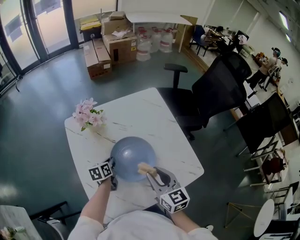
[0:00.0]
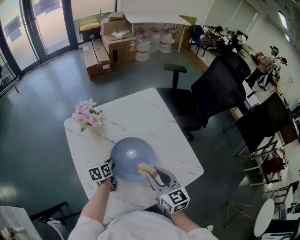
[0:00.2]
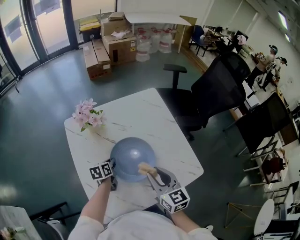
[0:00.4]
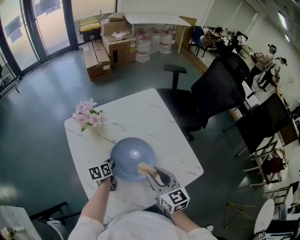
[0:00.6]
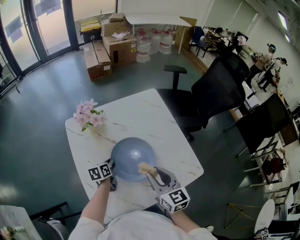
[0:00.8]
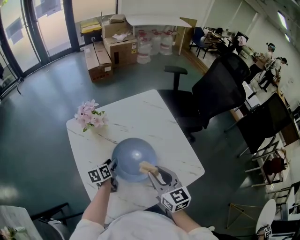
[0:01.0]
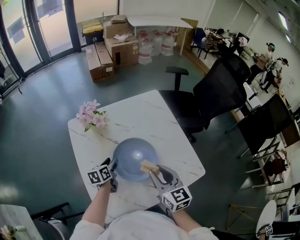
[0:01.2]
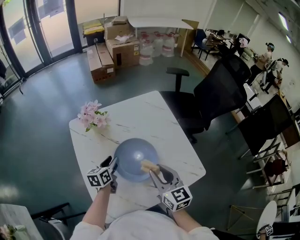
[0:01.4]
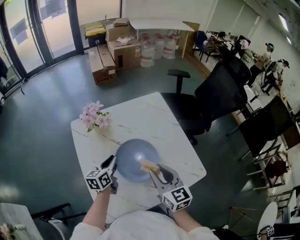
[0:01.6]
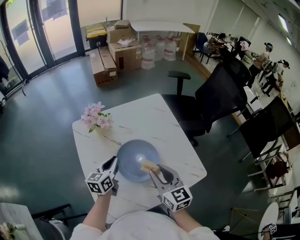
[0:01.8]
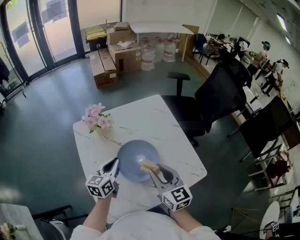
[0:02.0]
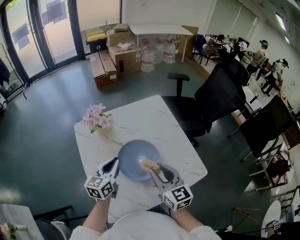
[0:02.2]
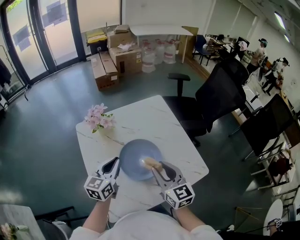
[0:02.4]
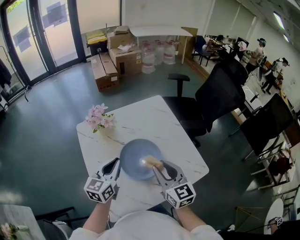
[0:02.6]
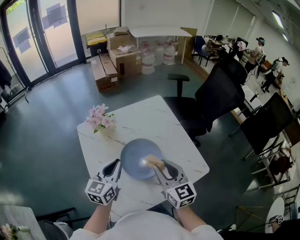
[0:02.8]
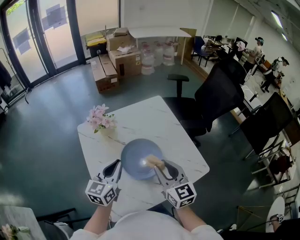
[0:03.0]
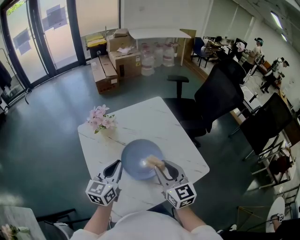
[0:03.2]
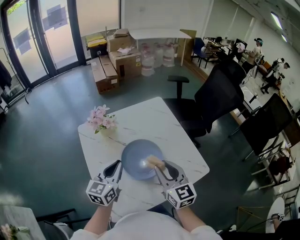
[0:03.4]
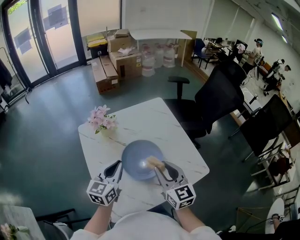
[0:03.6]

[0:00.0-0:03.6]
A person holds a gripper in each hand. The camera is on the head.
0:00.0 to 0:01.8: The left gripper goes roughly 15 cm upward, turns by about 30 degrees, and opens and closes again.
0:01.8 to 0:03.6: The left gripper is displaced upward and backward by about 10 cm.

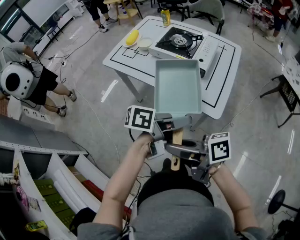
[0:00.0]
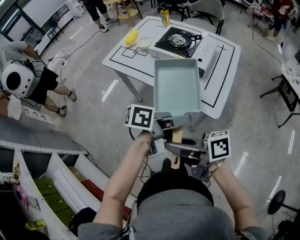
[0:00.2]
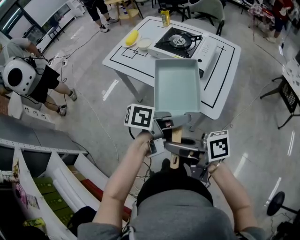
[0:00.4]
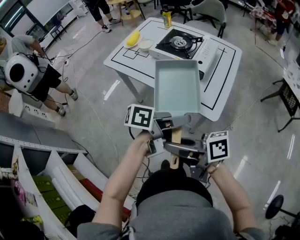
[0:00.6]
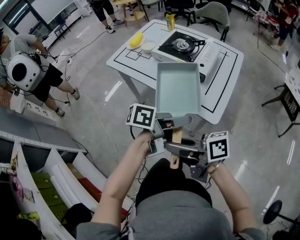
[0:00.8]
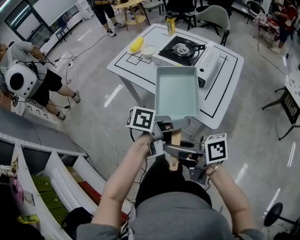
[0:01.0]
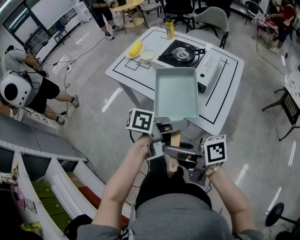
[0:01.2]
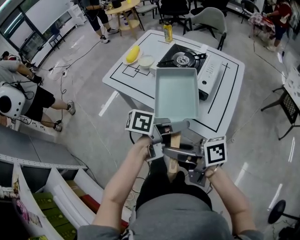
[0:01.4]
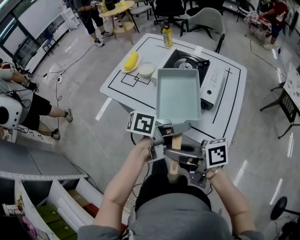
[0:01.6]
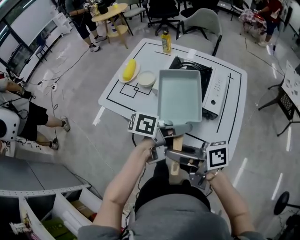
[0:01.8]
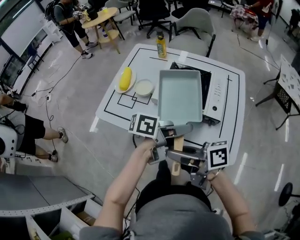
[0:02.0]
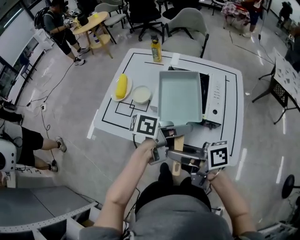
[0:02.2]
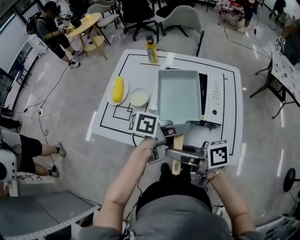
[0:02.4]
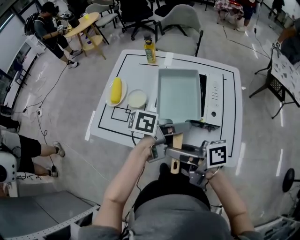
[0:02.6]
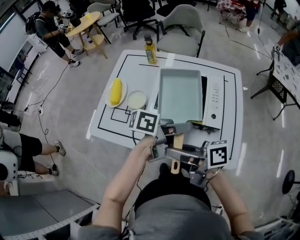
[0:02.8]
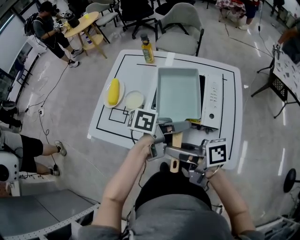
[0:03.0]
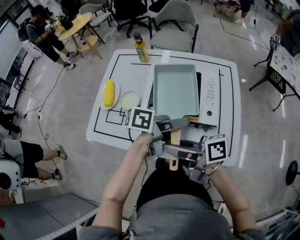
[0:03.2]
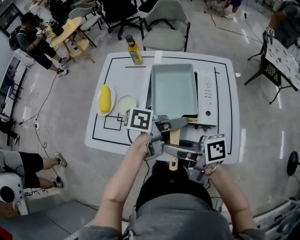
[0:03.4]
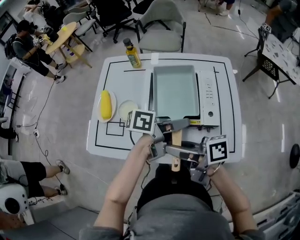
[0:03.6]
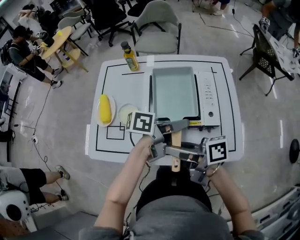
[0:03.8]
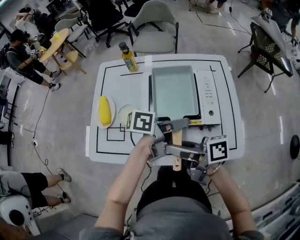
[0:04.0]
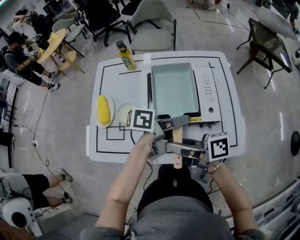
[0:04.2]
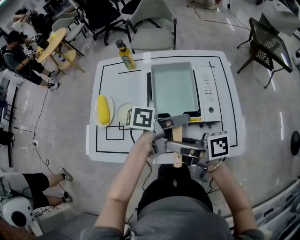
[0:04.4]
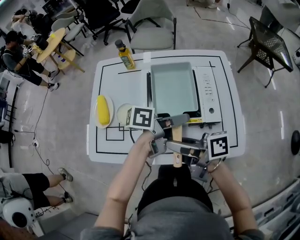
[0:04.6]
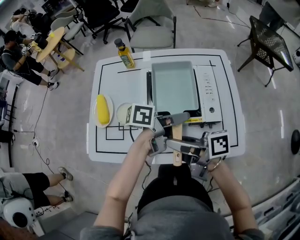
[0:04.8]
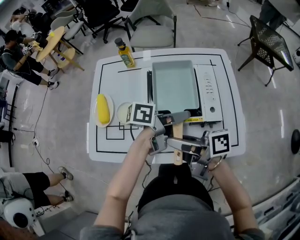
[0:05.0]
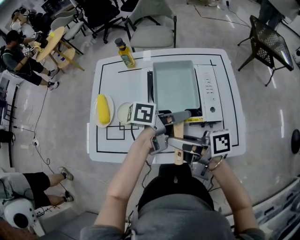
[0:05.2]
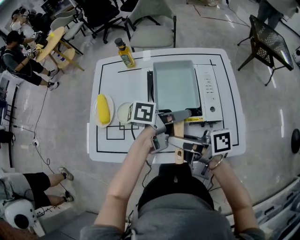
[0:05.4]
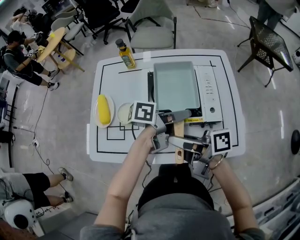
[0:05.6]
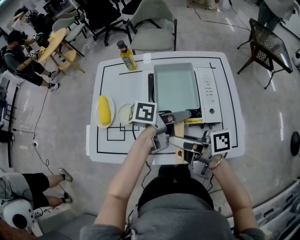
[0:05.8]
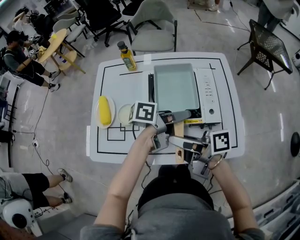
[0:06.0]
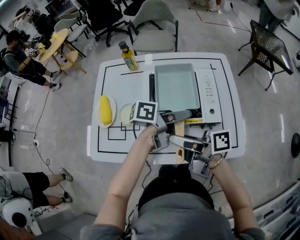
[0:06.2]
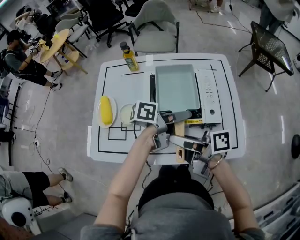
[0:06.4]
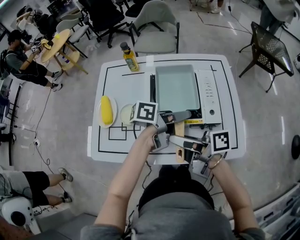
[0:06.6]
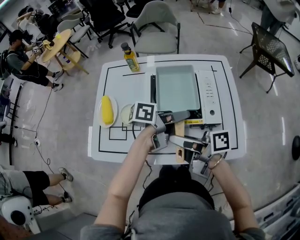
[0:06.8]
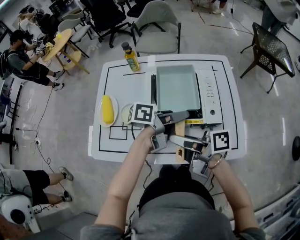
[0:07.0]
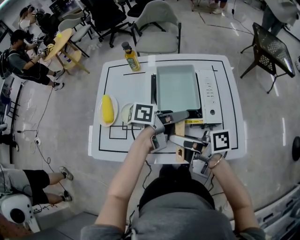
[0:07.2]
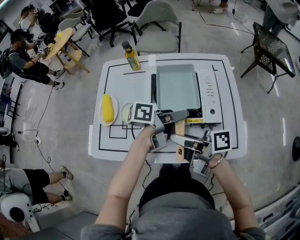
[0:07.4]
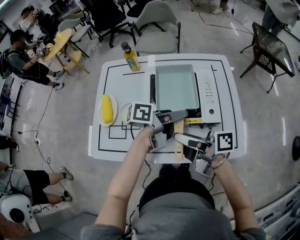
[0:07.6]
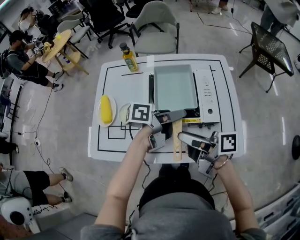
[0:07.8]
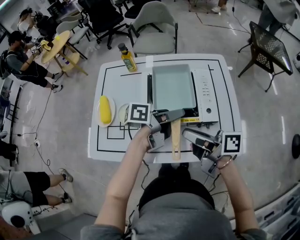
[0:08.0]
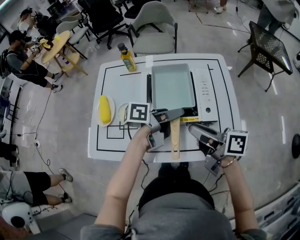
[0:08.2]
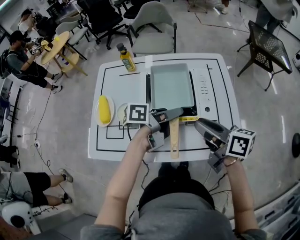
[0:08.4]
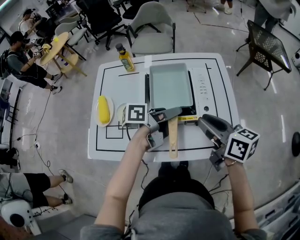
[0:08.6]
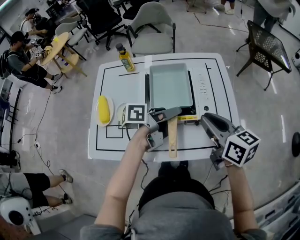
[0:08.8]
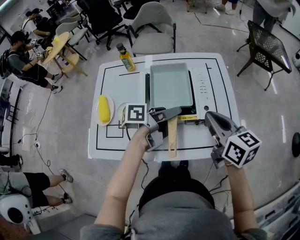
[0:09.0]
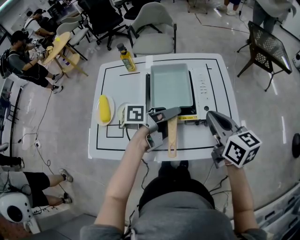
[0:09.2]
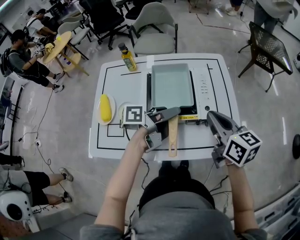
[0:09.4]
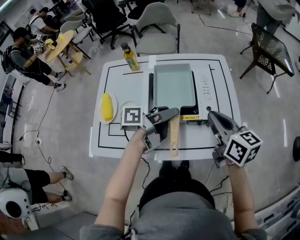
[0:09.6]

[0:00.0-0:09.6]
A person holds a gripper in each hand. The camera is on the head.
0:00.0 to 0:01.6: The right gripper changes place by roughly 15 cm. Meanwhile the left gripper moves roughly 15 cm.
0:01.6 to 0:03.2: The right gripper changes place by roughly 20 cm. The left gripper changes place by some 15 cm.
0:03.2 to 0:04.8: The right gripper ends up some 5 cm from where it was.
0:04.8 to 0:06.4: Both grippers stay about where they are.
0:06.4 to 0:08.0: The right gripper shifts by some 5 cm.
0:08.0 to 0:09.6: The right gripper travels to the right and forward by approximately 10 cm, changes its angle by some 50 degrees, and closes its fingers.

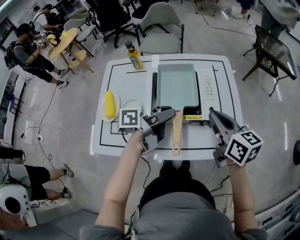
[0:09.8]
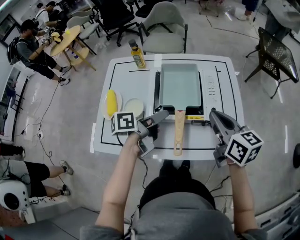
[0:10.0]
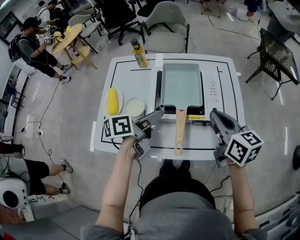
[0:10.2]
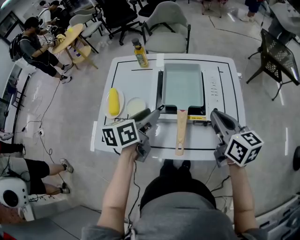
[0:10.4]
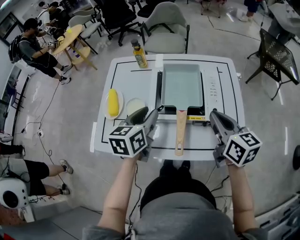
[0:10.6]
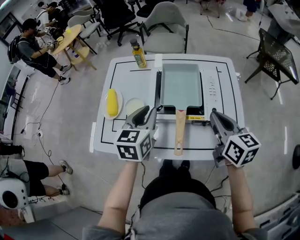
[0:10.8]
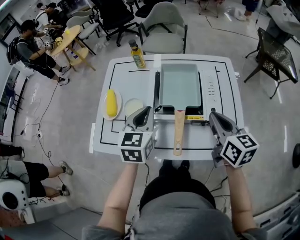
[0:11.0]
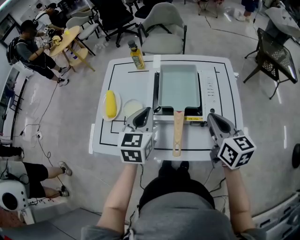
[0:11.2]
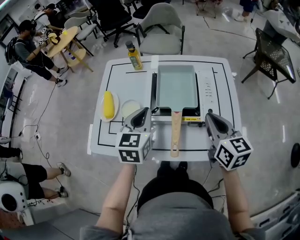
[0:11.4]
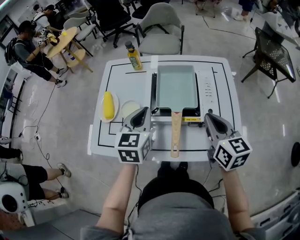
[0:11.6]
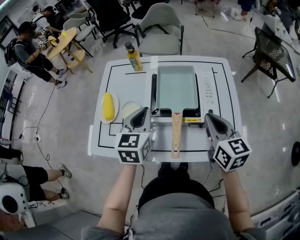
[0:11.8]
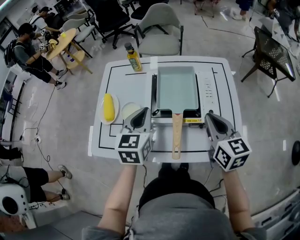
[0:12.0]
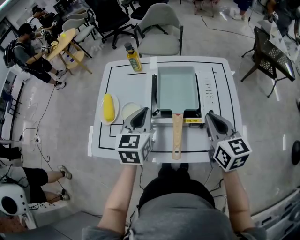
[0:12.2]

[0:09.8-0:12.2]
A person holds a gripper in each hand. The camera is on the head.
0:09.8 to 0:11.0: The left gripper travels to the left by roughly 10 cm, swivels about 80 degrees, and closes.
0:11.0 to 0:12.2: The grippers stay close to where they were, moving slightly.

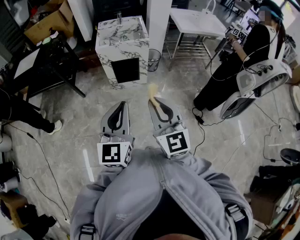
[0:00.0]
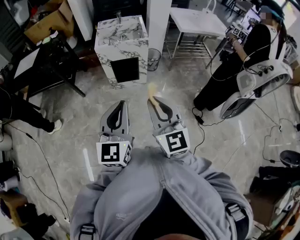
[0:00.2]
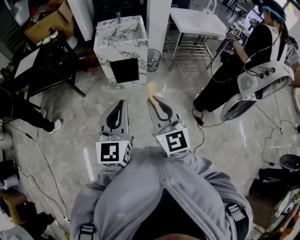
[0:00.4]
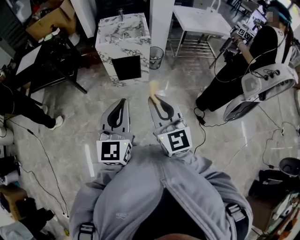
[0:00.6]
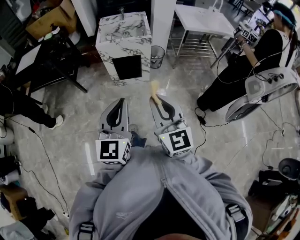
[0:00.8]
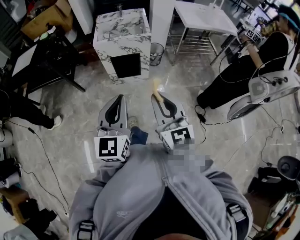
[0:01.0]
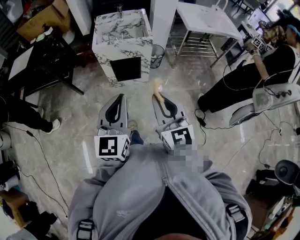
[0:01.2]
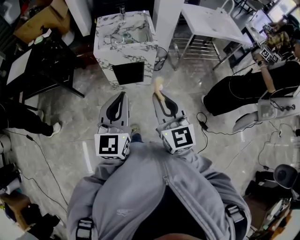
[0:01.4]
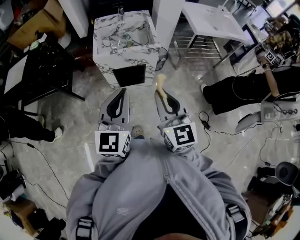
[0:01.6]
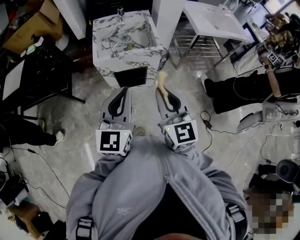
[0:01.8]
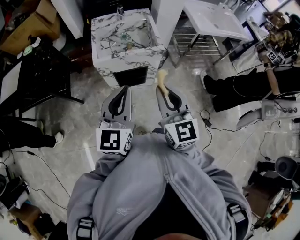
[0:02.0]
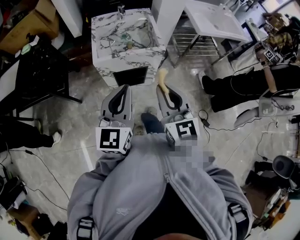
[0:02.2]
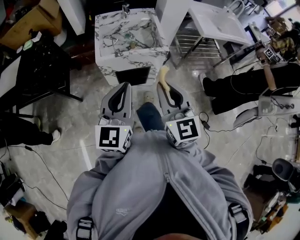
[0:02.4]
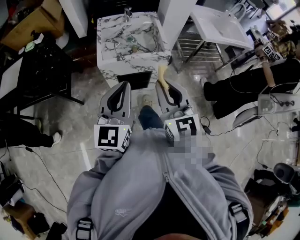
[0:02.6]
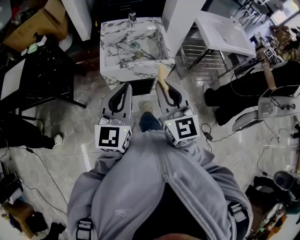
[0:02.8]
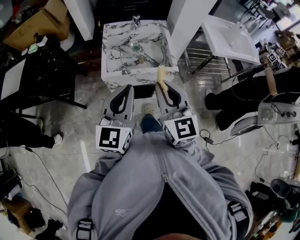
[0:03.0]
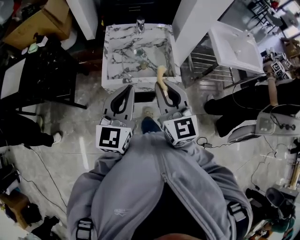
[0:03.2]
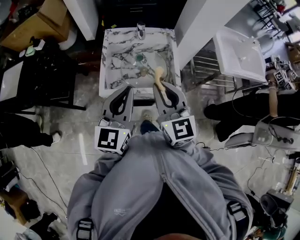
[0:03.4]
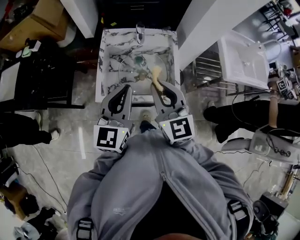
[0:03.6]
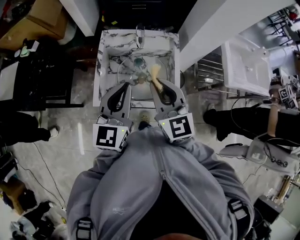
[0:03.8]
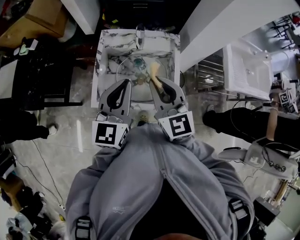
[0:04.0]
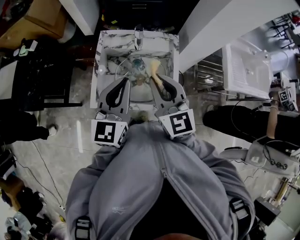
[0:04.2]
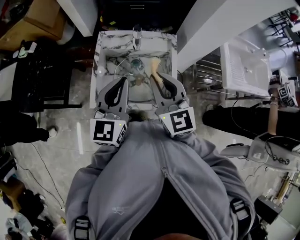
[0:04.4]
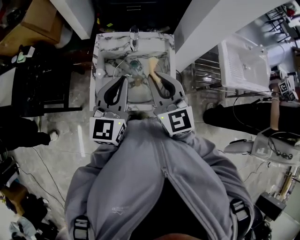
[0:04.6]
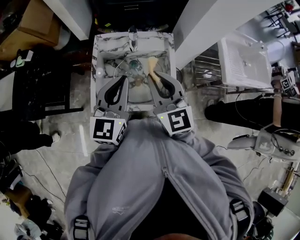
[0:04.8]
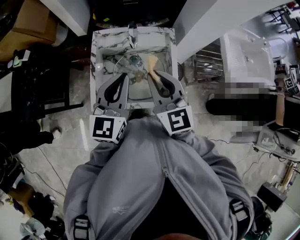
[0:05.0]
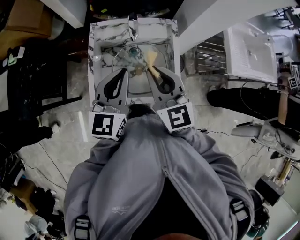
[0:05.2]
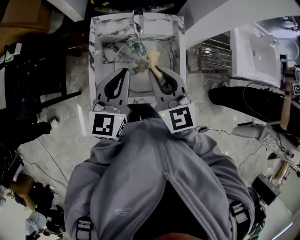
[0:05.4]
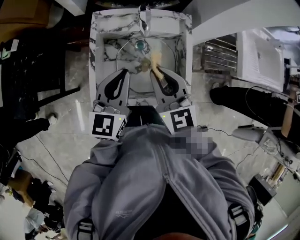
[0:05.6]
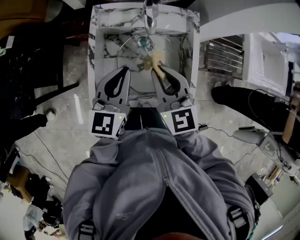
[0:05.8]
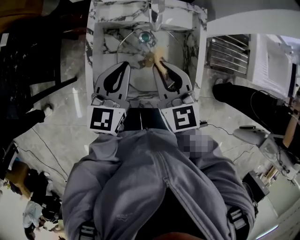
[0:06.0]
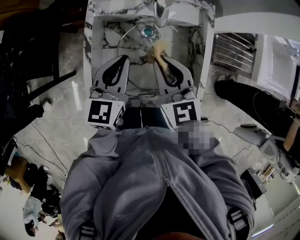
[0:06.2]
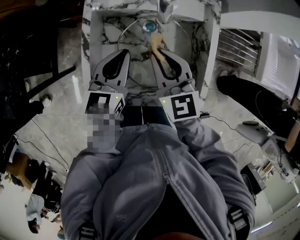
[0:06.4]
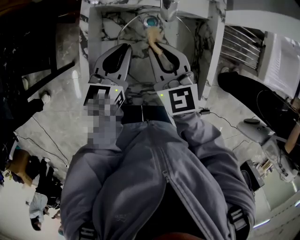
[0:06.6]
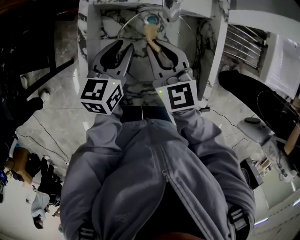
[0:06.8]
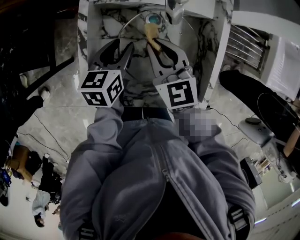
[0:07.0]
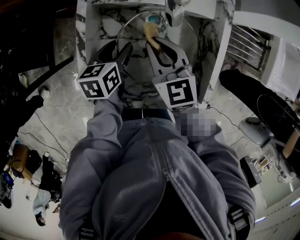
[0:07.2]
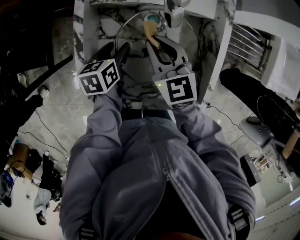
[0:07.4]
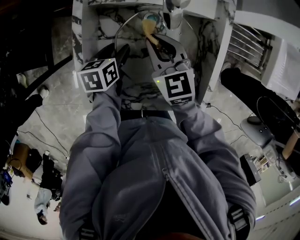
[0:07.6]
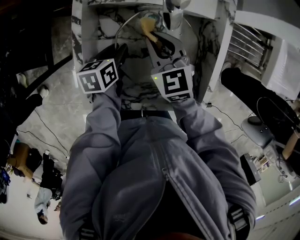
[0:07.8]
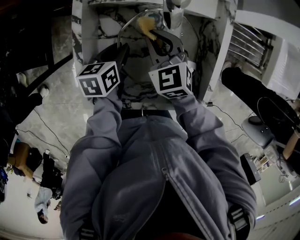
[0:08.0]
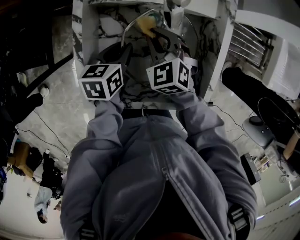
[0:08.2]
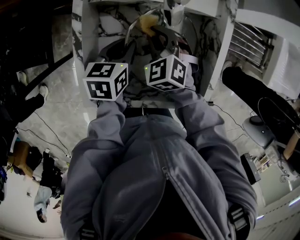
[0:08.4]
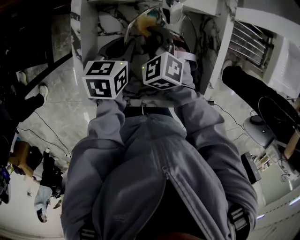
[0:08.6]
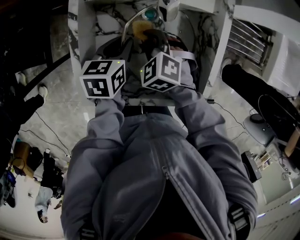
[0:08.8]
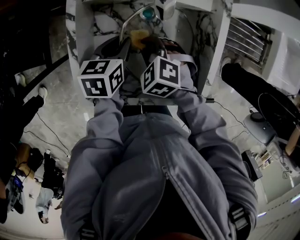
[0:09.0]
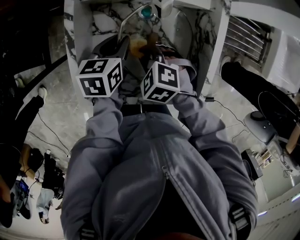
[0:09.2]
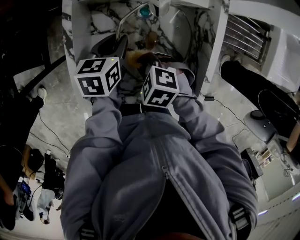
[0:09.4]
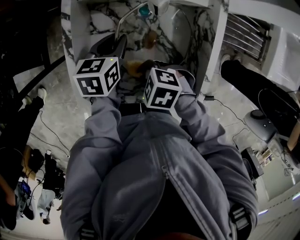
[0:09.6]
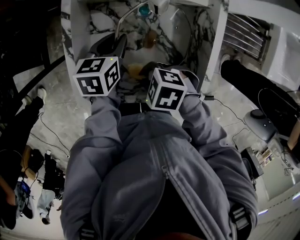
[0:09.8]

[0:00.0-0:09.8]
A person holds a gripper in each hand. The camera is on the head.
0:00.0 to 0:01.4: Both grippers travel together forward, about 25 cm.
0:01.4 to 0:02.8: Both grippers travel together forward, roughly 25 cm.
0:02.8 to 0:04.2: Both grippers travel together forward, about 35 cm.
0:04.2 to 0:05.6: The grippers both shift downward and forward by approximately 10 cm.
0:05.6 to 0:07.0: The left gripper heads downward, covering about 25 cm, turns by approximately 30 degrees, and opens, while the right gripper shifts about 20 cm downward and forward.
0:07.0 to 0:08.4: The right gripper goes roughly 10 cm downward, and turns by some 40 degrees.
0:08.4 to 0:09.8: The right gripper moves roughly 20 cm, and turns by about 50 degrees.
